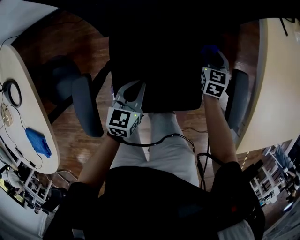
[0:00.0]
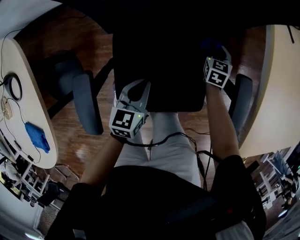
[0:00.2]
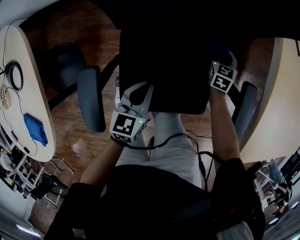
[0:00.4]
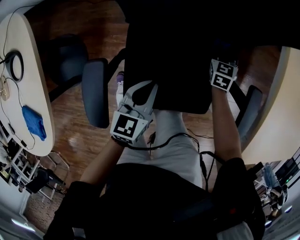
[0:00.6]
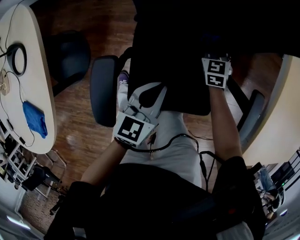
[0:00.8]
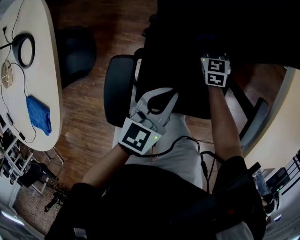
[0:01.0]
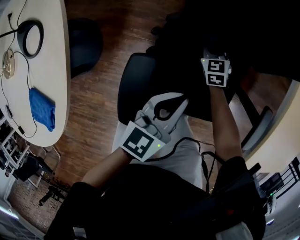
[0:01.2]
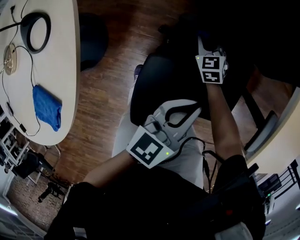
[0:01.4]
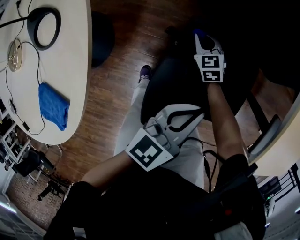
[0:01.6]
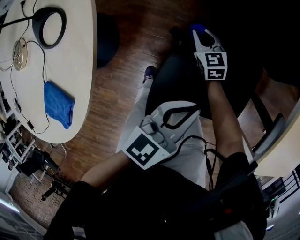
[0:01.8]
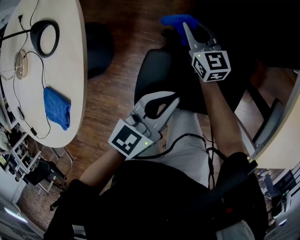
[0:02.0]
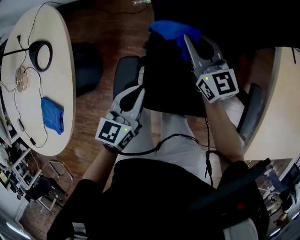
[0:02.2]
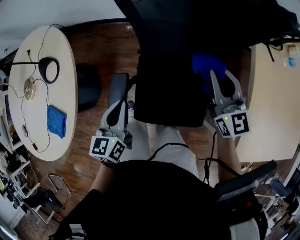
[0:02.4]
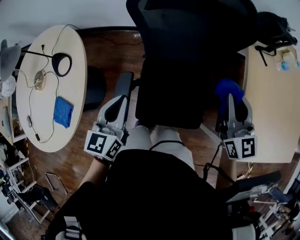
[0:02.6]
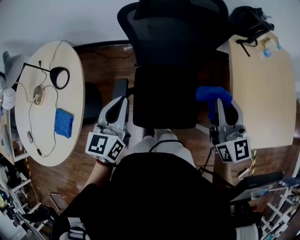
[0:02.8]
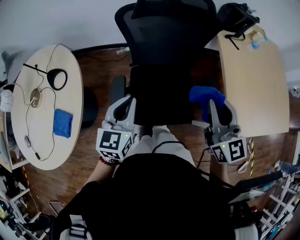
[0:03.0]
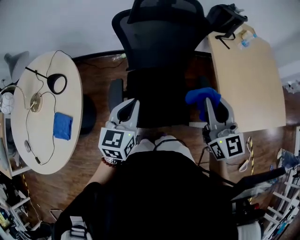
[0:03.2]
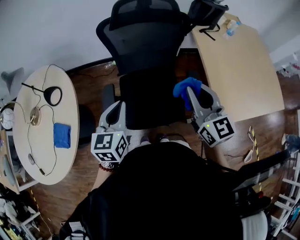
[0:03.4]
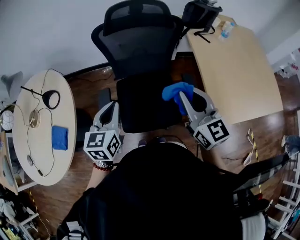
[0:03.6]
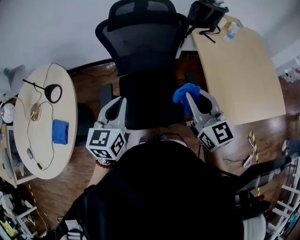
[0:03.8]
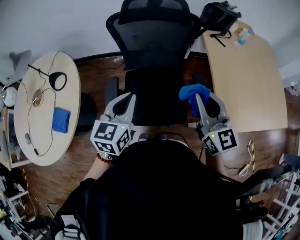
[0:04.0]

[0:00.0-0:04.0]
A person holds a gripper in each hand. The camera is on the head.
0.0 to 1.4 s: The right gripper shifts about 35 cm to the left, and rotates roughly 40 degrees. The left gripper goes approximately 15 cm upward and to the left, and turns by some 20 degrees.
1.4 to 2.6 s: The left gripper is displaced upward by about 20 cm, and swivels roughly 20 degrees. Meanwhile the right gripper heads upward, to the right and backward, covering some 60 cm, and tilts its fingers roughly 40 degrees upward.
2.6 to 4.0 s: The left gripper travels to the right, backward and upward by some 15 cm, while the right gripper shifts roughly 20 cm backward.

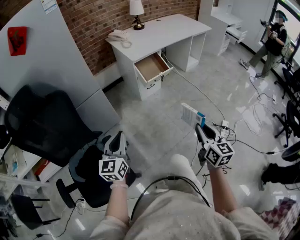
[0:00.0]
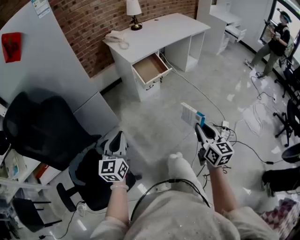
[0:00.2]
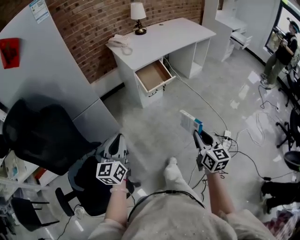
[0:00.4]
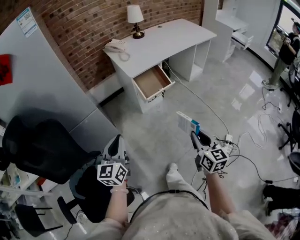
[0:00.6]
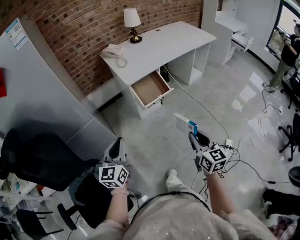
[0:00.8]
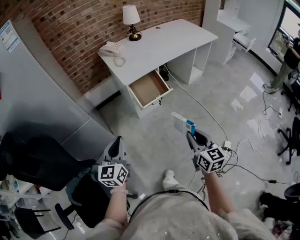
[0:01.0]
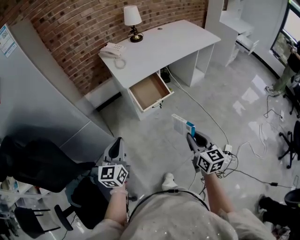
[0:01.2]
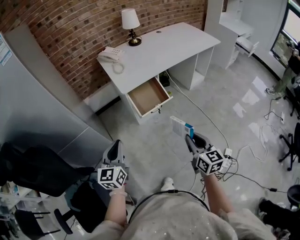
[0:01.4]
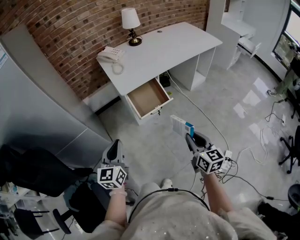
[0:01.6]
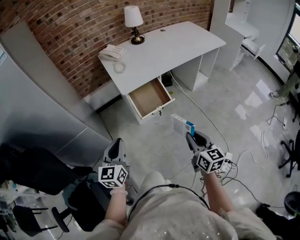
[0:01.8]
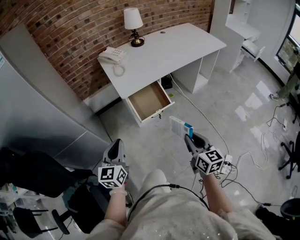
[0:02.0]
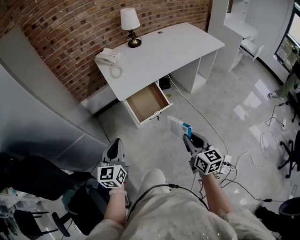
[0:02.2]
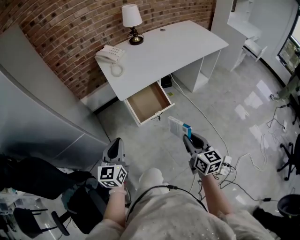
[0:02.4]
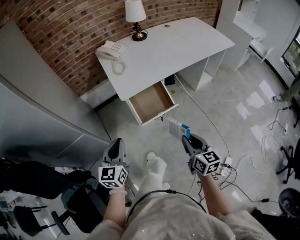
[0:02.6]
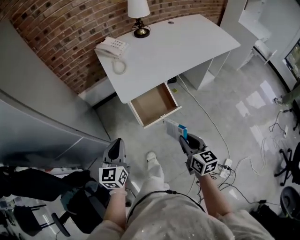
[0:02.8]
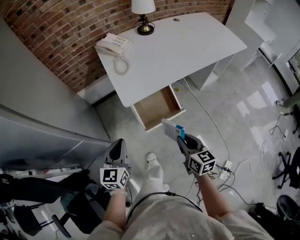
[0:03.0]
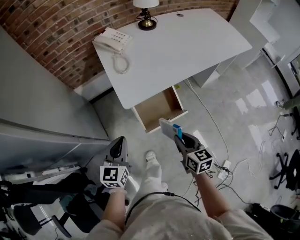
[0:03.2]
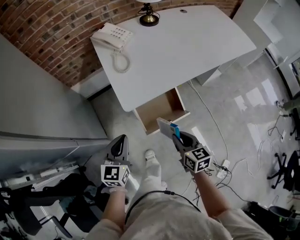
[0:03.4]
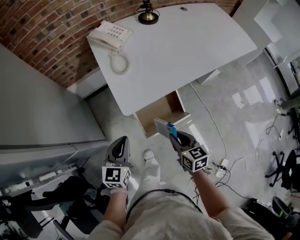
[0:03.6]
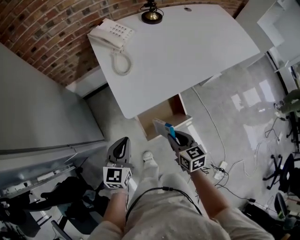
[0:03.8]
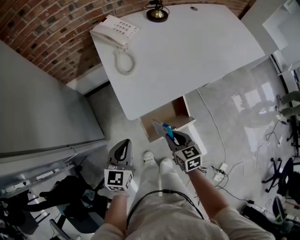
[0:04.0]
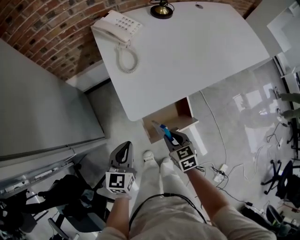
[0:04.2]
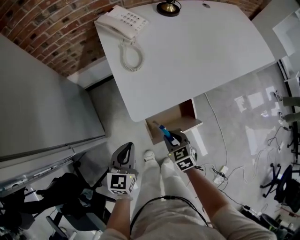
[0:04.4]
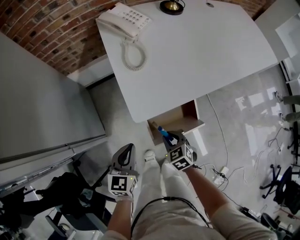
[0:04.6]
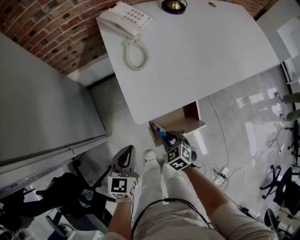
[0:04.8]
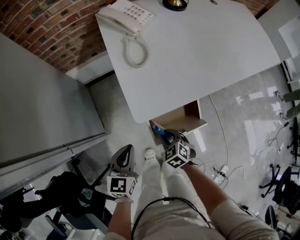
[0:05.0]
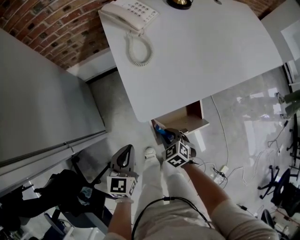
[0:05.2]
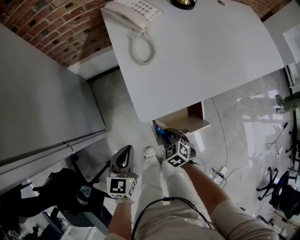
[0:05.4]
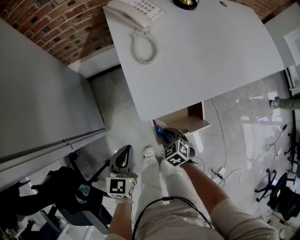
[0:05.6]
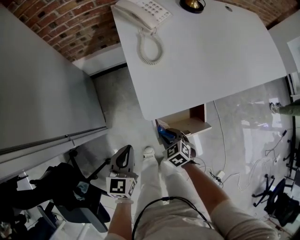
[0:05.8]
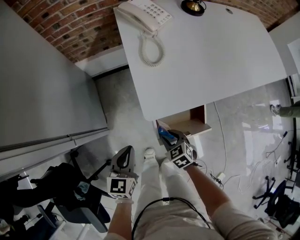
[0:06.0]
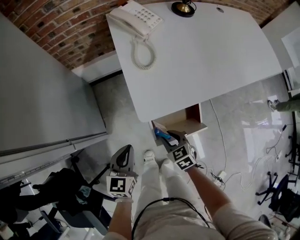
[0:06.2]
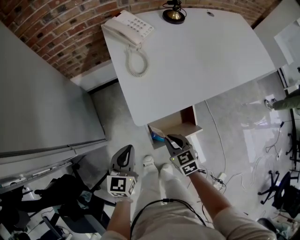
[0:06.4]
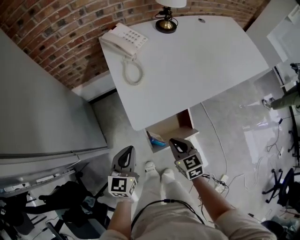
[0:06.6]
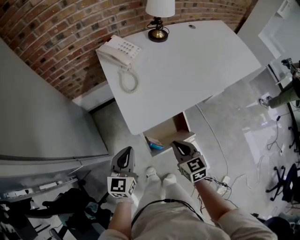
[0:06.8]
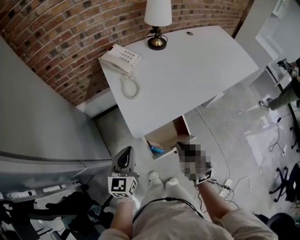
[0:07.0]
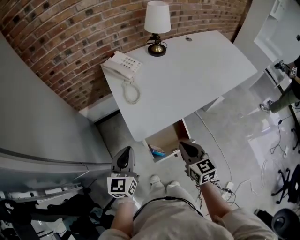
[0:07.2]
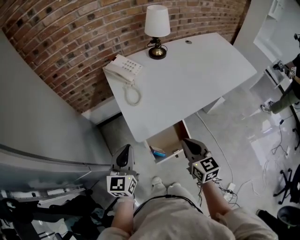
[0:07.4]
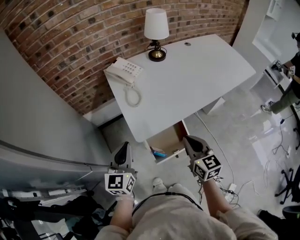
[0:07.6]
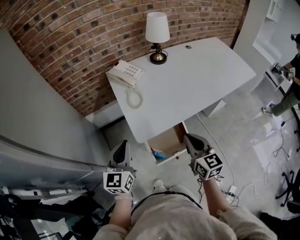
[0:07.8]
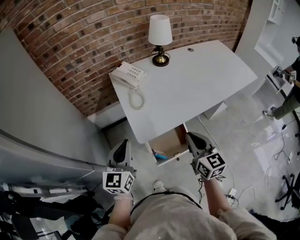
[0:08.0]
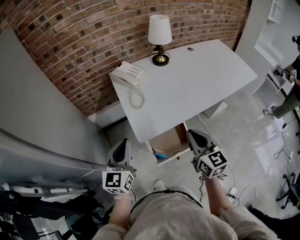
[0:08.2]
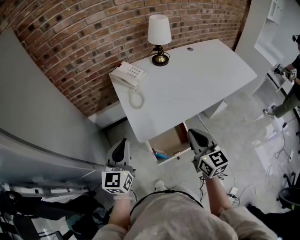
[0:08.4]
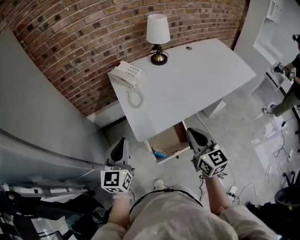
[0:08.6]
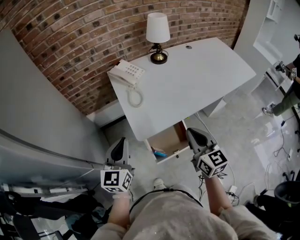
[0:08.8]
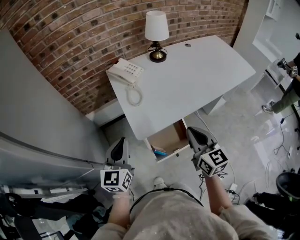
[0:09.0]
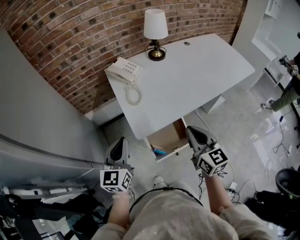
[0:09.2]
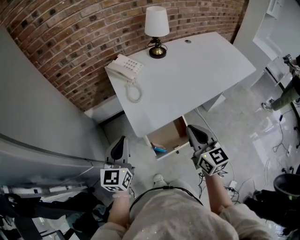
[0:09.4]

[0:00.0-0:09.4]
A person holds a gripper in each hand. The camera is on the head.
0.0 to 1.6 s: The two grippers go some 30 cm forward.
1.6 to 3.2 s: Both grippers travel together forward and downward, approximately 25 cm.
3.2 to 4.8 s: The right gripper goes approximately 25 cm downward, forward and to the left, and turns by approximately 50 degrees. Meanwhile the left gripper heads downward and forward, covering some 15 cm.
4.8 to 6.2 s: There are only small adjustments of the grippers.
6.2 to 7.8 s: Both grippers move upward, approximately 25 cm. The right gripper tips its fingers upward by about 40 degrees, and closes its fingers. Meanwhile the left gripper changes its angle by some 20 degrees.
7.8 to 9.4 s: The grippers make only small movements.

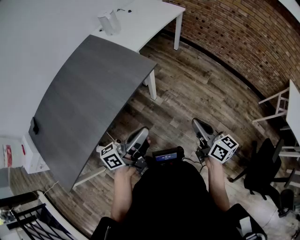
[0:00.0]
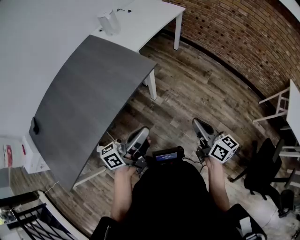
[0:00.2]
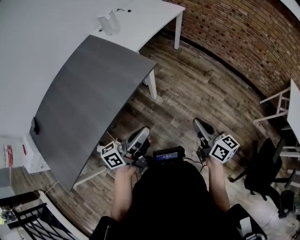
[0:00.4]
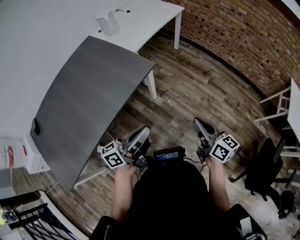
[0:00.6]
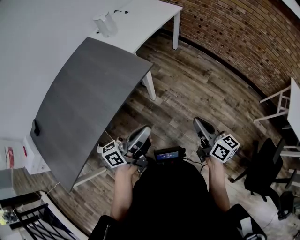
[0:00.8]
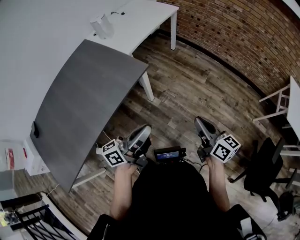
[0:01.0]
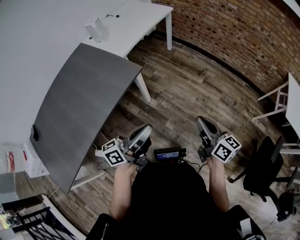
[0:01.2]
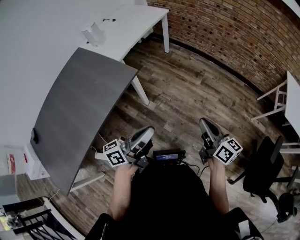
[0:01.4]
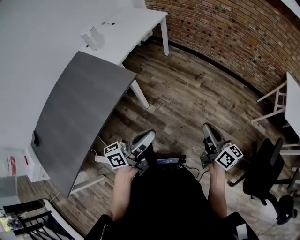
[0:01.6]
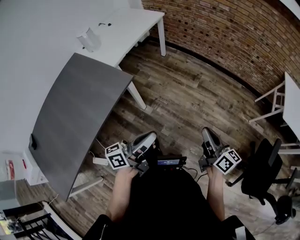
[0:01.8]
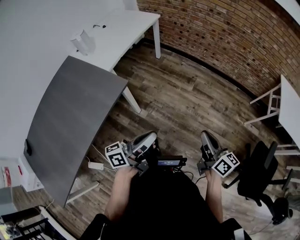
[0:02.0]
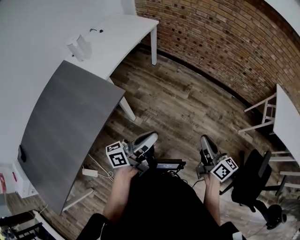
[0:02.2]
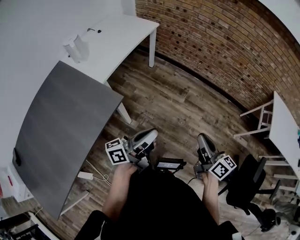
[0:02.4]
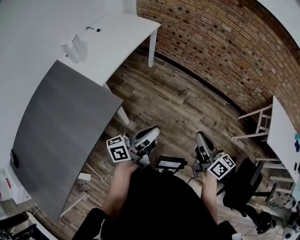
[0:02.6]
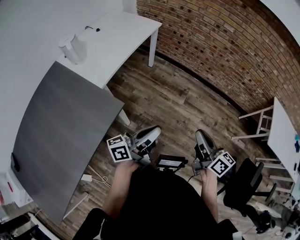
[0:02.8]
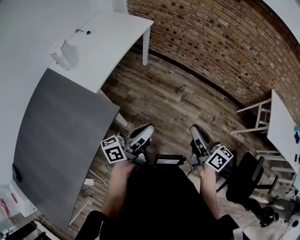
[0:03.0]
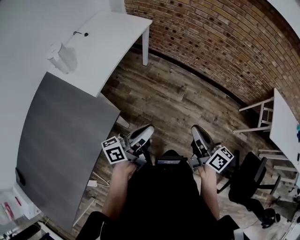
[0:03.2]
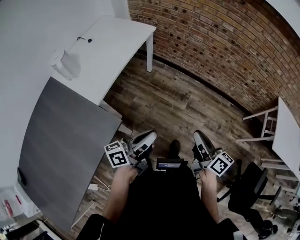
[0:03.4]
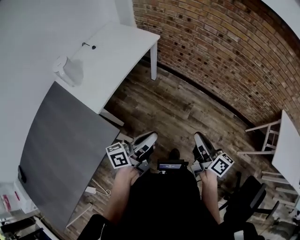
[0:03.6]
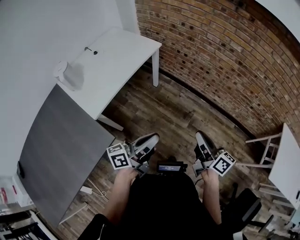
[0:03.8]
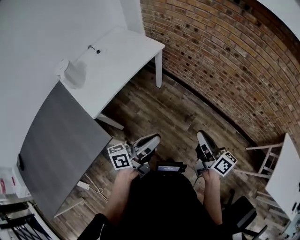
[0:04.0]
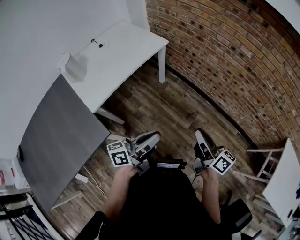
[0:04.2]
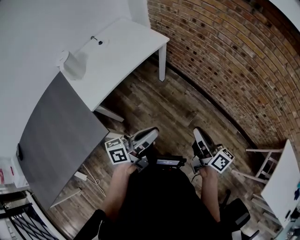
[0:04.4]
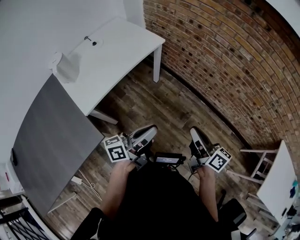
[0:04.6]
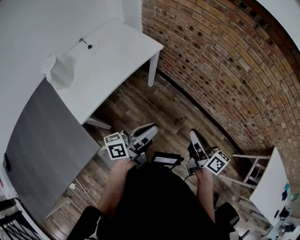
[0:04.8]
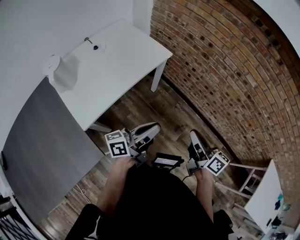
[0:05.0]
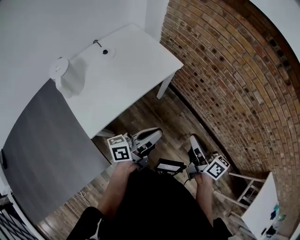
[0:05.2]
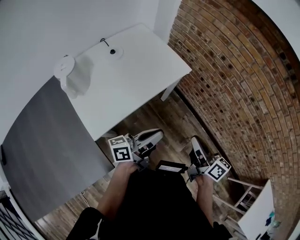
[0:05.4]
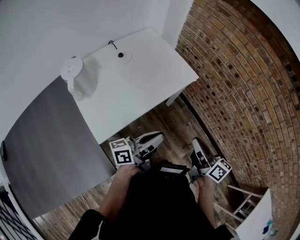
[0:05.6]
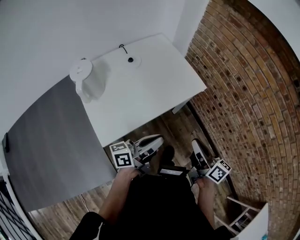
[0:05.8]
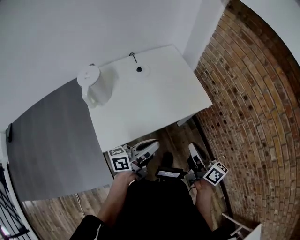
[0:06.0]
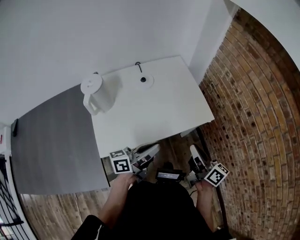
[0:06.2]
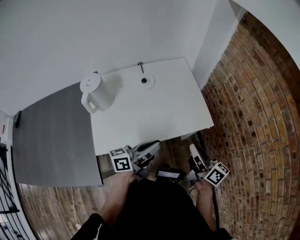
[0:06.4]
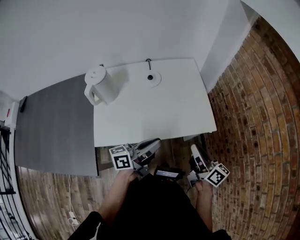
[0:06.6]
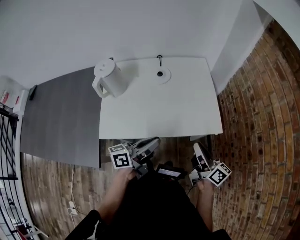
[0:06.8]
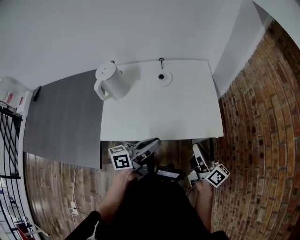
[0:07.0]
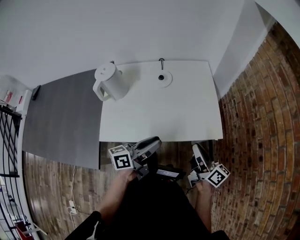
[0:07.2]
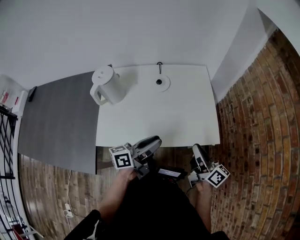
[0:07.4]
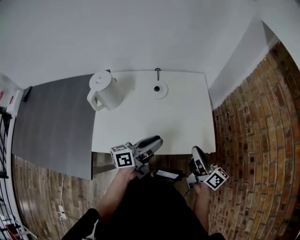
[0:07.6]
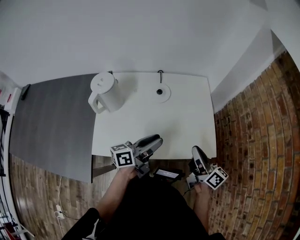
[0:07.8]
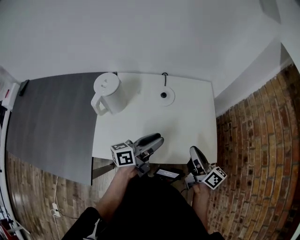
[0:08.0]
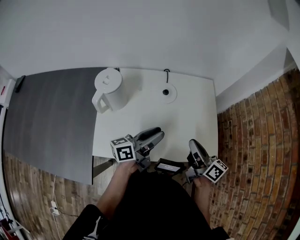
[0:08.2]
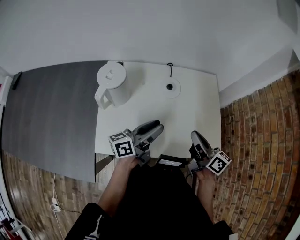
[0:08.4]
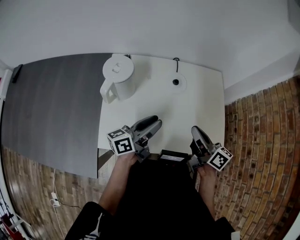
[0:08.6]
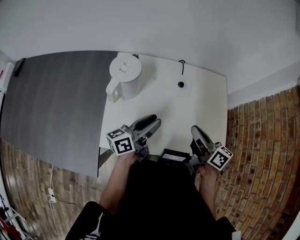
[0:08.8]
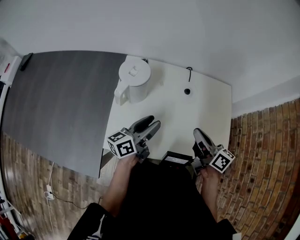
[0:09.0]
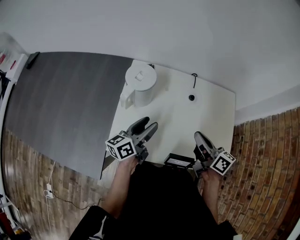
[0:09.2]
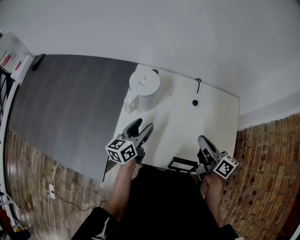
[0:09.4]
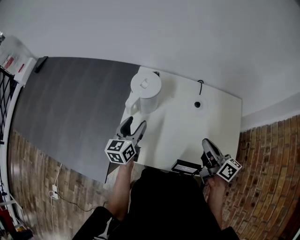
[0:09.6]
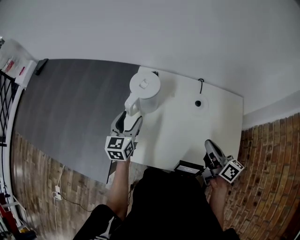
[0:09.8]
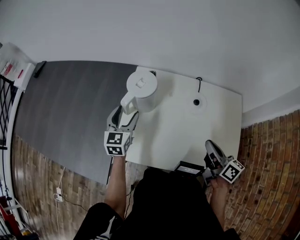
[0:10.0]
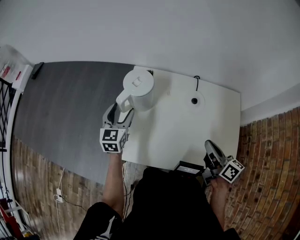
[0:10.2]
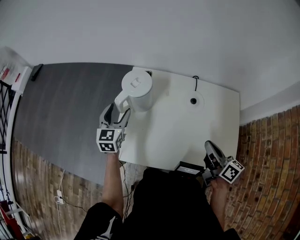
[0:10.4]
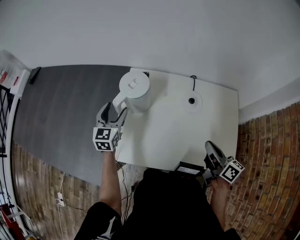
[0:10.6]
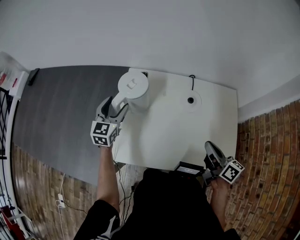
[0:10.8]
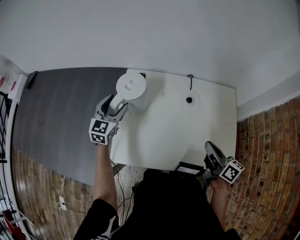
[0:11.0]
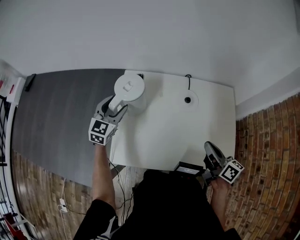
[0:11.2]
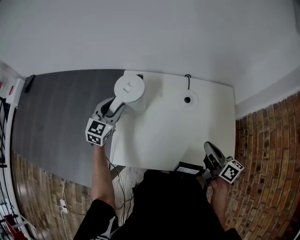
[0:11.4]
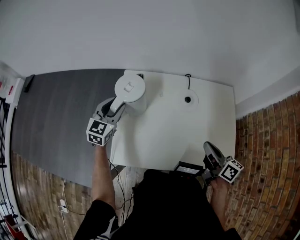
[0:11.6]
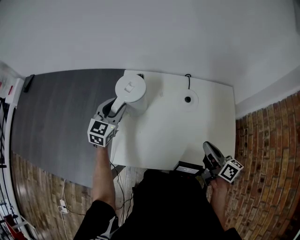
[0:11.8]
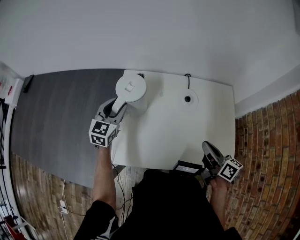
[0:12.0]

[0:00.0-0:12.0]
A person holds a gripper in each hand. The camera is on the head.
0.0 to 1.6 s: The two grippers go roughly 15 cm to the right.
1.6 to 3.0 s: The right gripper heads forward and to the left, covering some 25 cm; the left gripper goes some 25 cm forward.
3.0 to 4.4 s: The left gripper travels forward and to the right by approximately 20 cm. The right gripper goes approximately 25 cm forward.
4.4 to 6.0 s: The two grippers go some 35 cm forward and to the left. The right gripper swivels approximately 20 degrees; the left gripper swivels some 20 degrees.
6.0 to 7.6 s: The two grippers go roughly 20 cm forward. The left gripper turns by some 30 degrees. The right gripper swivels approximately 20 degrees.
7.6 to 9.0 s: Both grippers move to the left and forward, approximately 20 cm. The right gripper rotates some 20 degrees. Meanwhile the left gripper turns by some 20 degrees.
9.0 to 10.4 s: The left gripper goes roughly 20 cm to the left and forward, changes its angle by about 60 degrees, and opens up.
10.4 to 12.0 s: The left gripper closes its fingers.
